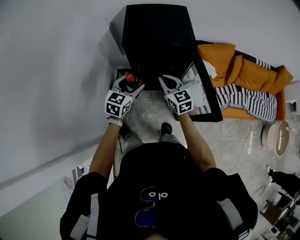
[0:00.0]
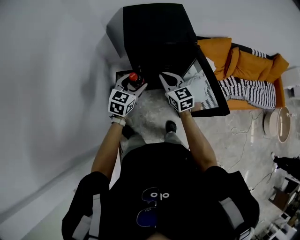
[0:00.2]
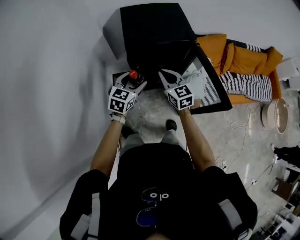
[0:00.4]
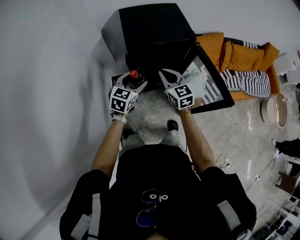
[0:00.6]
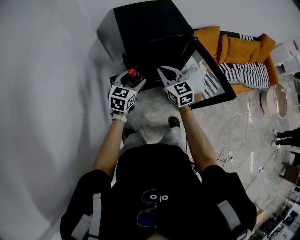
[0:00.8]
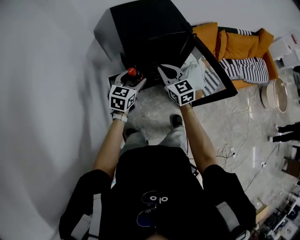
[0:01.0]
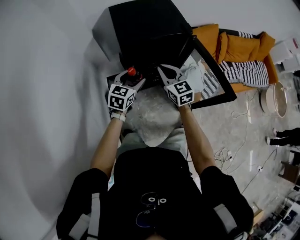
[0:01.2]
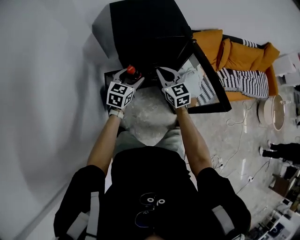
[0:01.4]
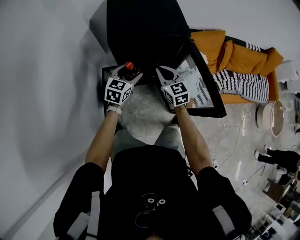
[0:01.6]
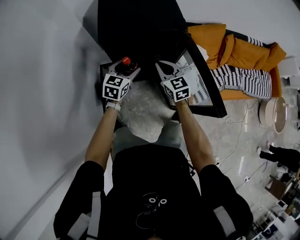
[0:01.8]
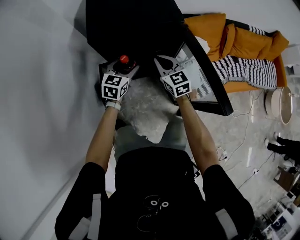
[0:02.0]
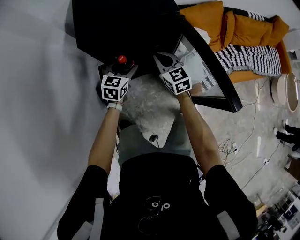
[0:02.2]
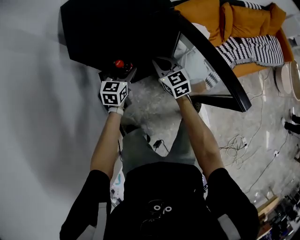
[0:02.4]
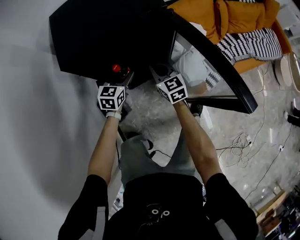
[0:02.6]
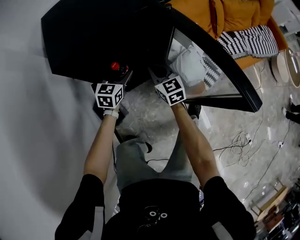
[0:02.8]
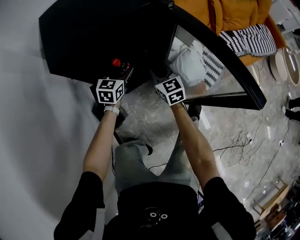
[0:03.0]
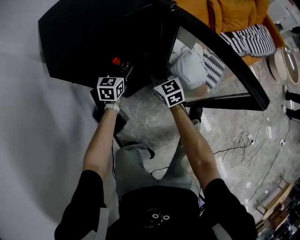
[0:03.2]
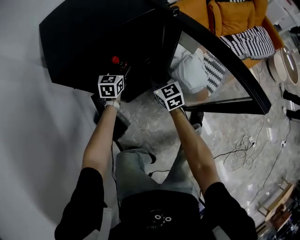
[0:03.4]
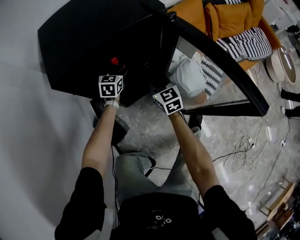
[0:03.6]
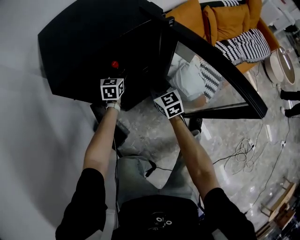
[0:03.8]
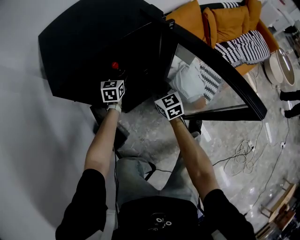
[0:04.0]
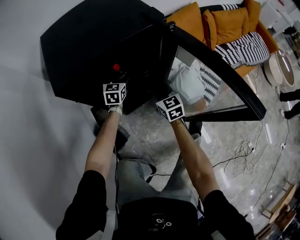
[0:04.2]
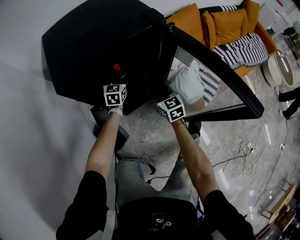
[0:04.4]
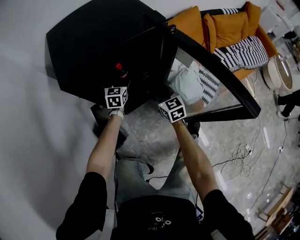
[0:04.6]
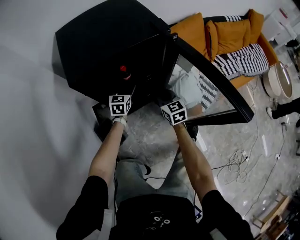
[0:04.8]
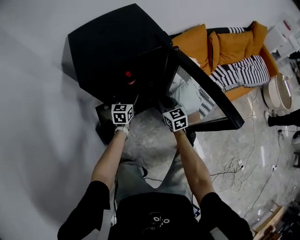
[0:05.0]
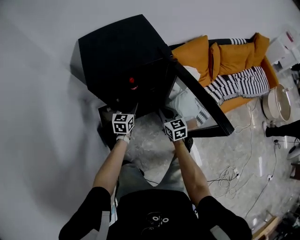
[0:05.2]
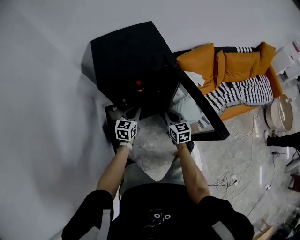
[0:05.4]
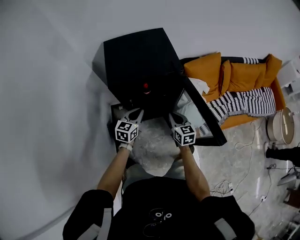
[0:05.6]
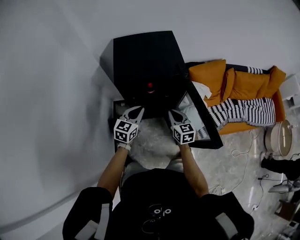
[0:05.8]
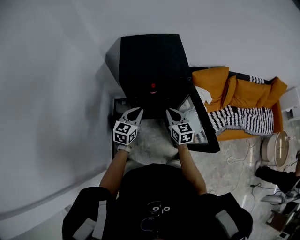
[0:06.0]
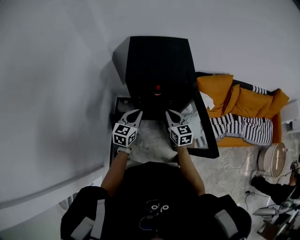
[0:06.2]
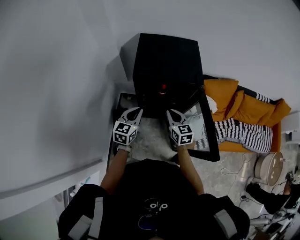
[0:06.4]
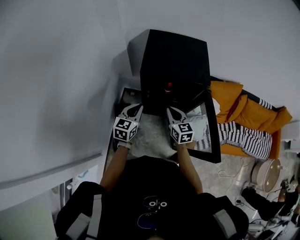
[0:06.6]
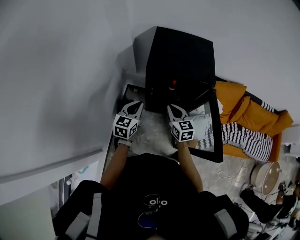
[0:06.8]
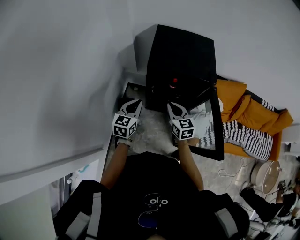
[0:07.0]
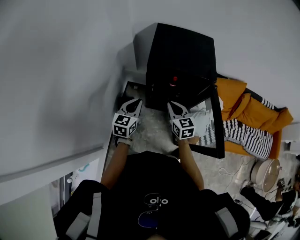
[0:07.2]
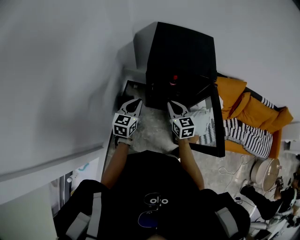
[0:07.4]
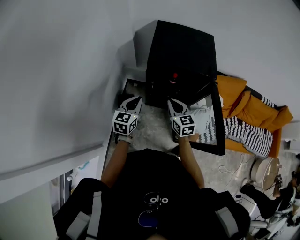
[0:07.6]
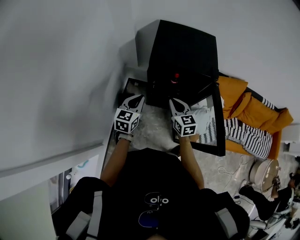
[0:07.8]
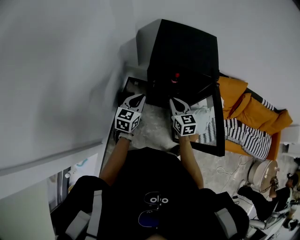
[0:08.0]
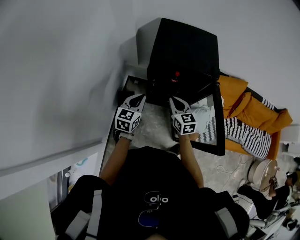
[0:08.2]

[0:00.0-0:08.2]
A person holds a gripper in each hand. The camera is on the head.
0:00.0 to 0:01.6: The right gripper moves downward, some 5 cm. The left gripper moves downward and forward, roughly 10 cm.
0:01.6 to 0:03.2: The left gripper heads downward and forward, covering approximately 25 cm. Meanwhile the right gripper is displaced downward by roughly 20 cm.
0:03.2 to 0:05.0: The left gripper reaches about 5 cm forward, then returns. Meanwhile the right gripper shifts by about 5 cm.
0:05.0 to 0:06.6: The left gripper is displaced upward, backward and to the left by approximately 30 cm, turns by roughly 20 degrees, and closes. The right gripper goes some 20 cm upward and to the left, and swivels approximately 20 degrees.
0:06.6 to 0:08.2: The grippers make only small movements.

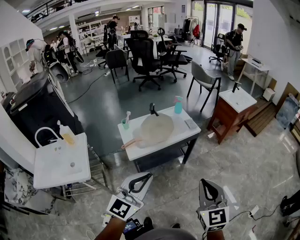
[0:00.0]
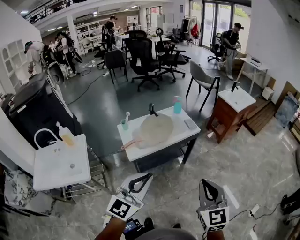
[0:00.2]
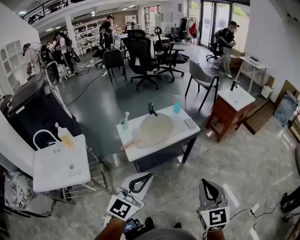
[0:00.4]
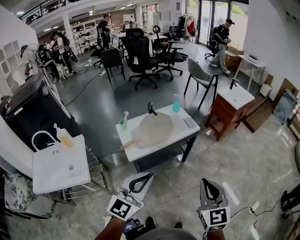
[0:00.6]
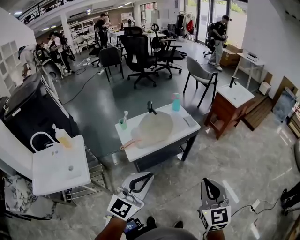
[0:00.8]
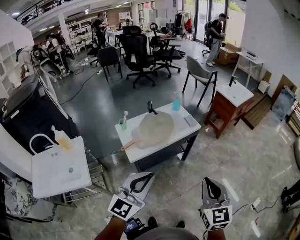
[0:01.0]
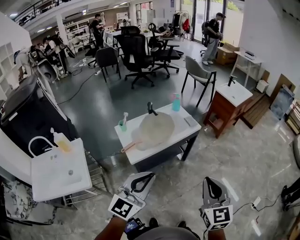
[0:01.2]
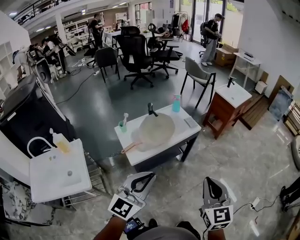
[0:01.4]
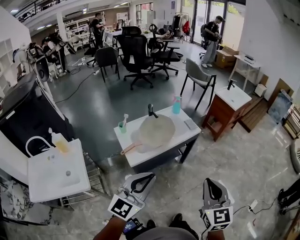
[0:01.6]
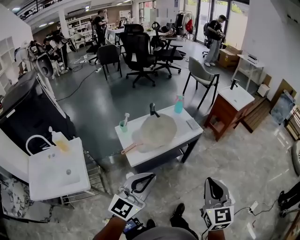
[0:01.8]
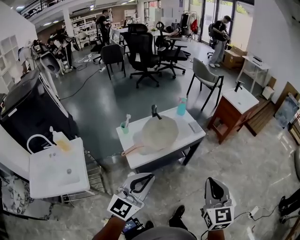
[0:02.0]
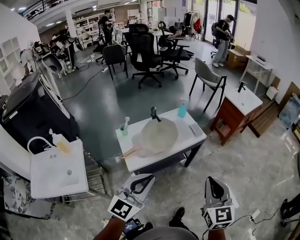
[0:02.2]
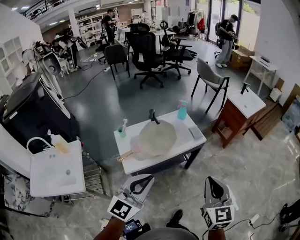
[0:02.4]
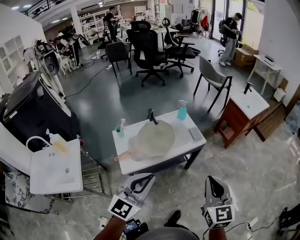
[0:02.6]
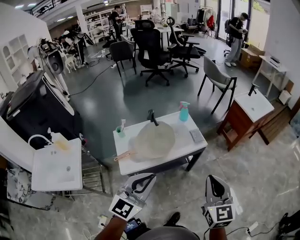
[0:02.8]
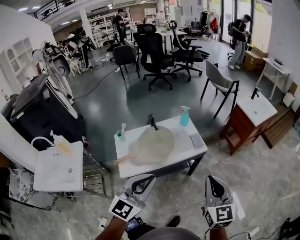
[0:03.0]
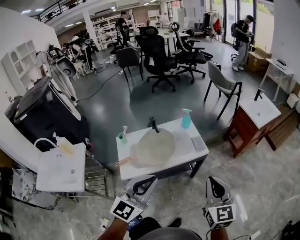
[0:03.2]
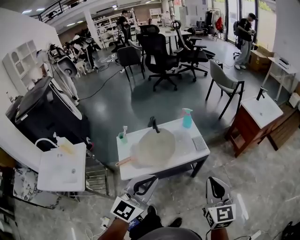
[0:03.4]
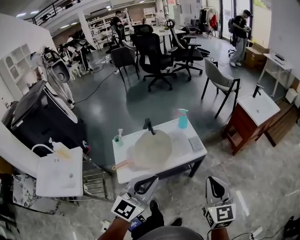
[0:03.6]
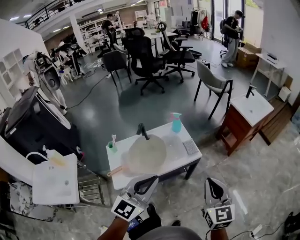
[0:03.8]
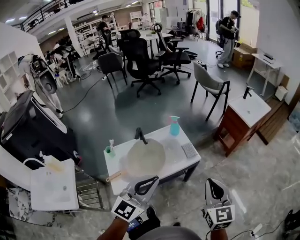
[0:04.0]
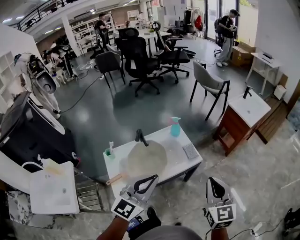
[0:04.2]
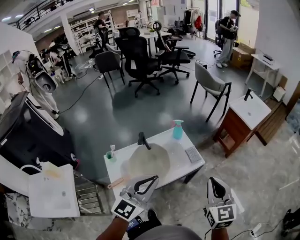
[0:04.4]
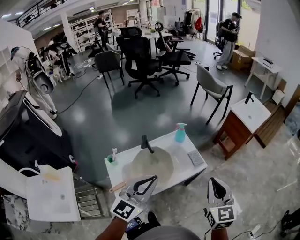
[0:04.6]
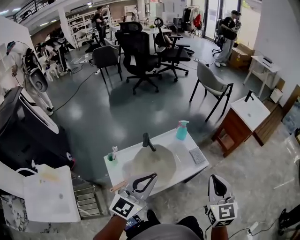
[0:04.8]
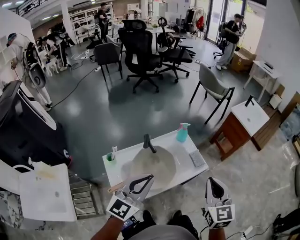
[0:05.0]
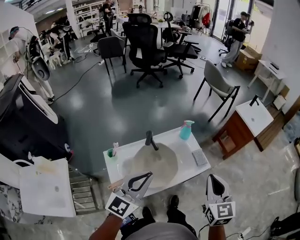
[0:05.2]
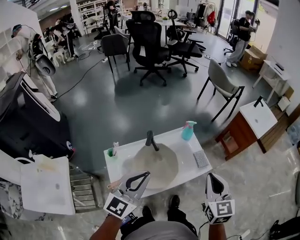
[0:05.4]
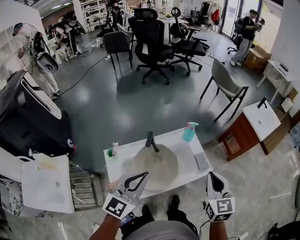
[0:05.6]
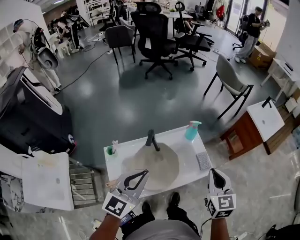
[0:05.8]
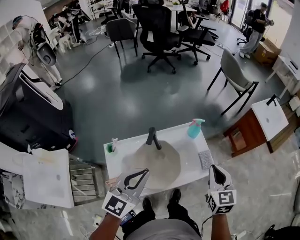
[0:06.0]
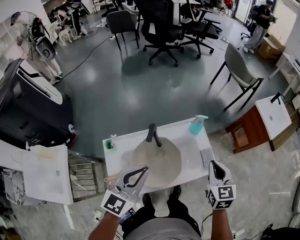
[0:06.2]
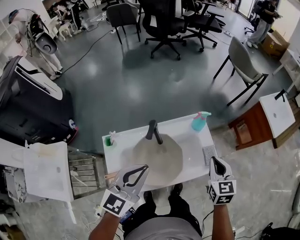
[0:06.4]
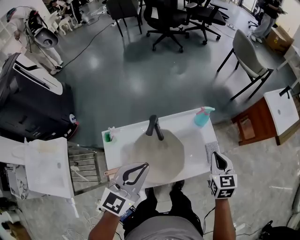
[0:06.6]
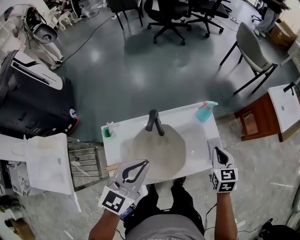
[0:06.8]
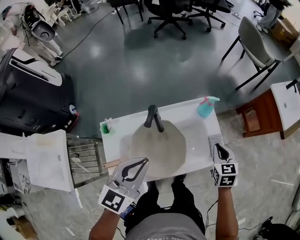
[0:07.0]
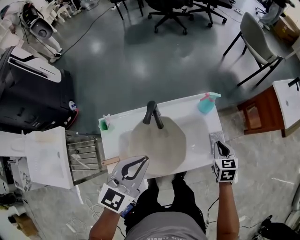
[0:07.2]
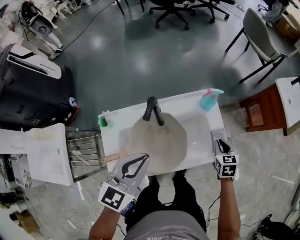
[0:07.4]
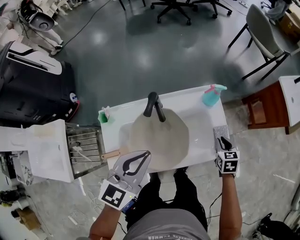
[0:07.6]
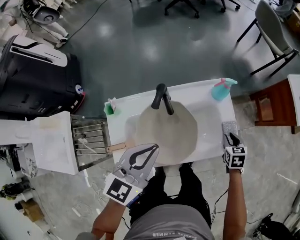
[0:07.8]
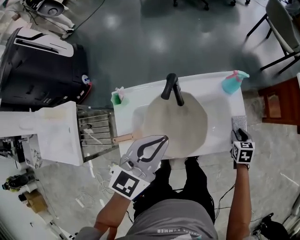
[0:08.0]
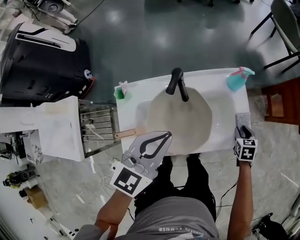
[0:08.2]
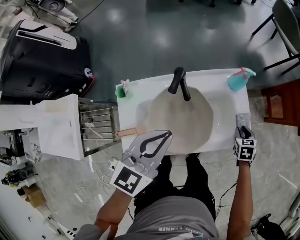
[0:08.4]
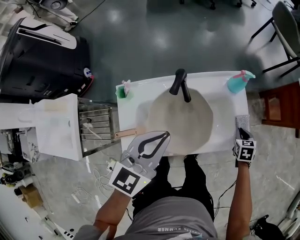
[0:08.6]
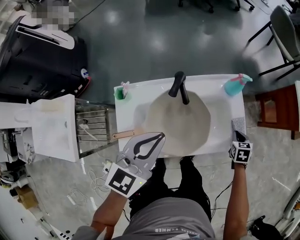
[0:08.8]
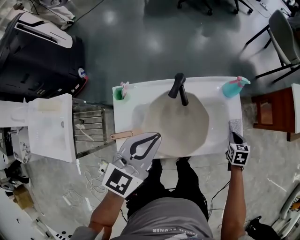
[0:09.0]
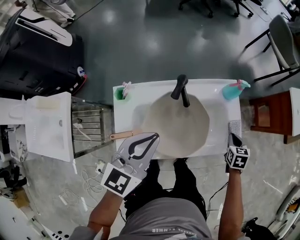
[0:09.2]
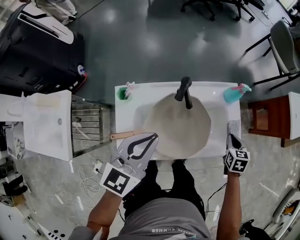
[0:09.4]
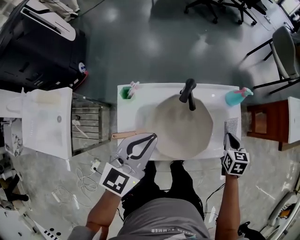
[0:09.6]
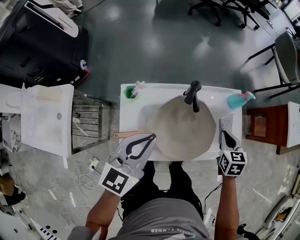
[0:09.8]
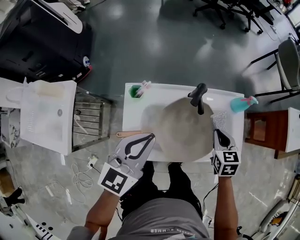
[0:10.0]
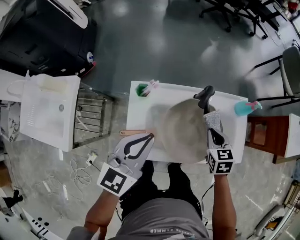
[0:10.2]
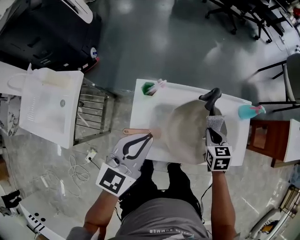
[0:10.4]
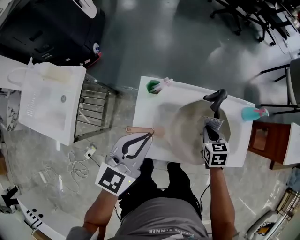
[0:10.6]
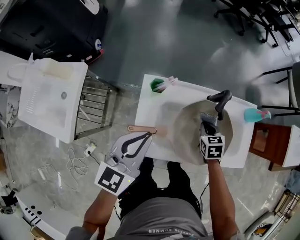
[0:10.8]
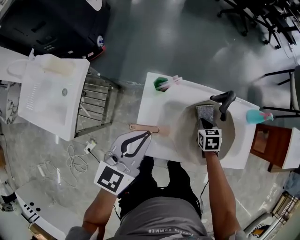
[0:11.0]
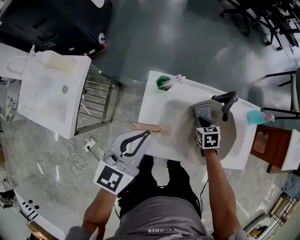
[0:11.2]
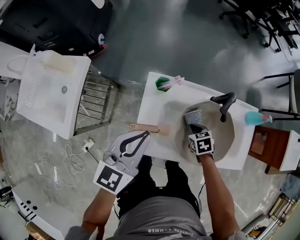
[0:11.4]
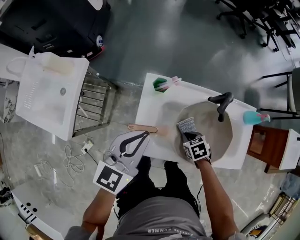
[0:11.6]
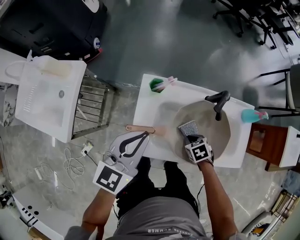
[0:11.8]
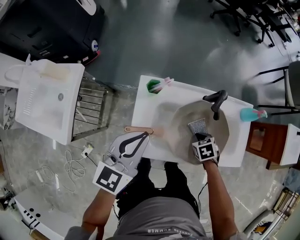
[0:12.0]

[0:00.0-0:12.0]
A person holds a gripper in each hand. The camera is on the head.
0:00.0 to 0:01.6: The grippers both shift to the left by approximately 5 cm.
0:01.6 to 0:03.0: The grippers both shift forward and to the right by roughly 25 cm.
0:03.0 to 0:04.4: Both grippers move forward, approximately 15 cm.
0:04.4 to 0:06.0: The right gripper travels forward, downward and to the left by roughly 25 cm; the left gripper travels to the left, forward and downward by roughly 20 cm.
0:06.0 to 0:07.6: The left gripper is displaced downward by approximately 10 cm. Meanwhile the right gripper travels downward by some 30 cm, and turns by approximately 30 degrees.
0:07.6 to 0:09.0: The left gripper moves approximately 5 cm.
0:09.0 to 0:10.4: The left gripper travels to the left by approximately 15 cm; the right gripper travels to the left by approximately 30 cm, and rotates about 20 degrees.
0:10.4 to 0:12.0: The right gripper goes about 10 cm downward, and changes its angle by about 30 degrees.

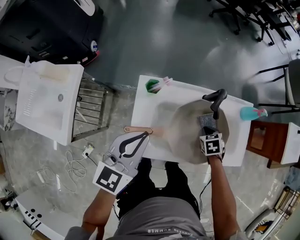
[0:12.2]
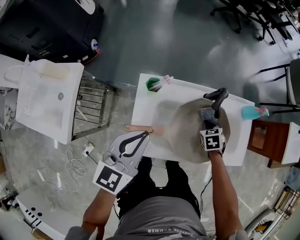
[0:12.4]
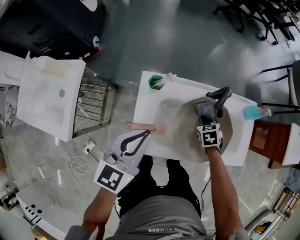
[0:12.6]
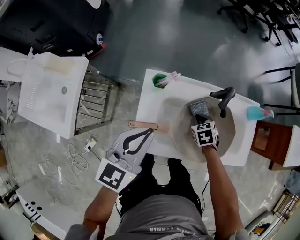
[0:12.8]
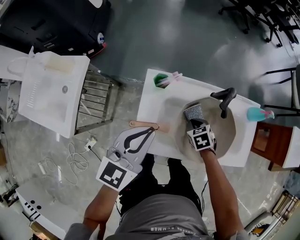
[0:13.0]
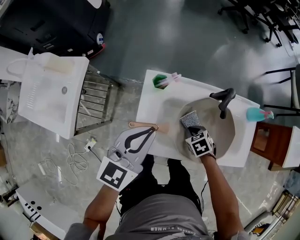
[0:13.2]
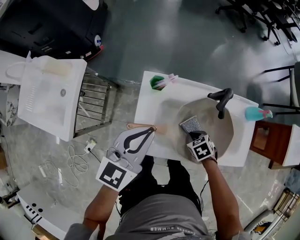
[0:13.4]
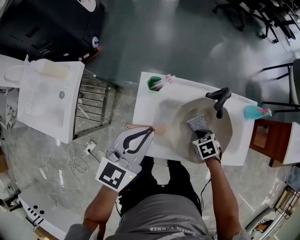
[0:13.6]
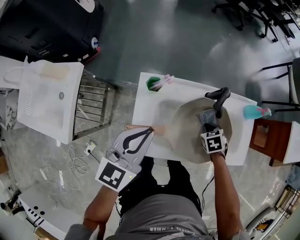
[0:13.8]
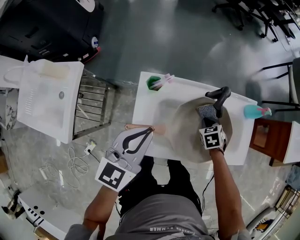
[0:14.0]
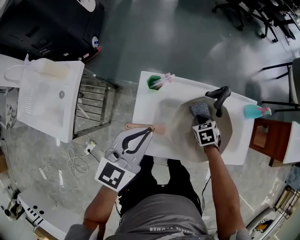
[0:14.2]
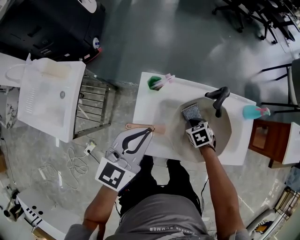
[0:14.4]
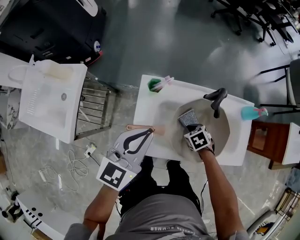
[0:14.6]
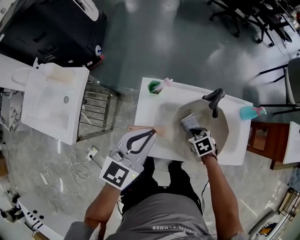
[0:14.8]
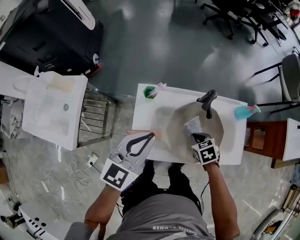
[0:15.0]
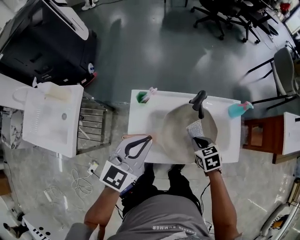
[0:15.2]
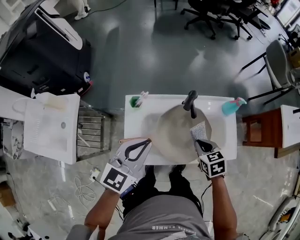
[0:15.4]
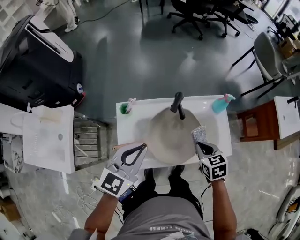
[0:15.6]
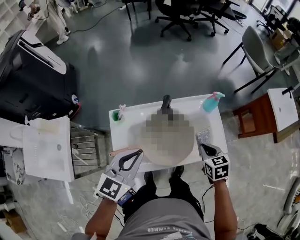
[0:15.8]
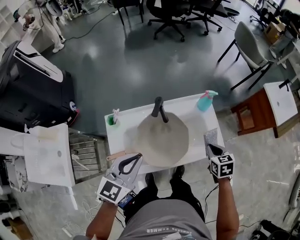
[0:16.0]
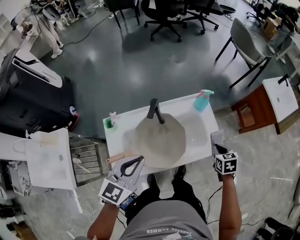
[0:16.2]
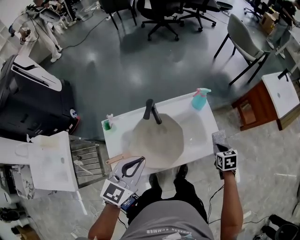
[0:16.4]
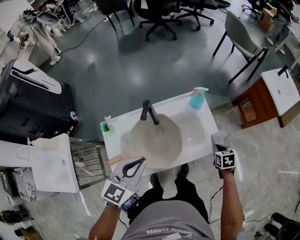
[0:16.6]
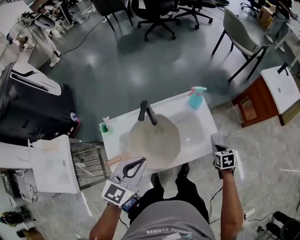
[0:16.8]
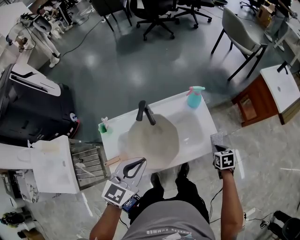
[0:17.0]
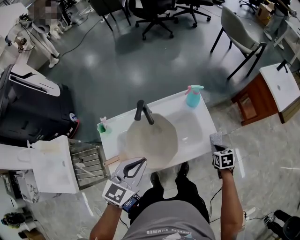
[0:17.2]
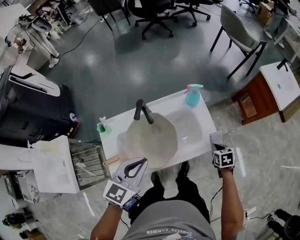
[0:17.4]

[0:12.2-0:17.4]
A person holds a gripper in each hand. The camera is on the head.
0:14.0 to 0:15.6: The right gripper moves upward, backward and to the right, roughly 20 cm, and turns by roughly 30 degrees. Meanwhile the left gripper goes roughly 10 cm to the right and upward.
0:15.6 to 0:17.4: The left gripper shifts about 15 cm to the right; the right gripper travels to the right and downward by about 30 cm, and changes its angle by roughly 30 degrees.
